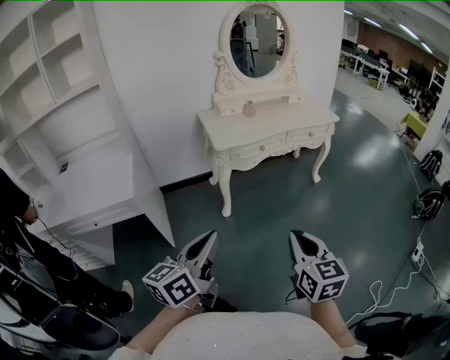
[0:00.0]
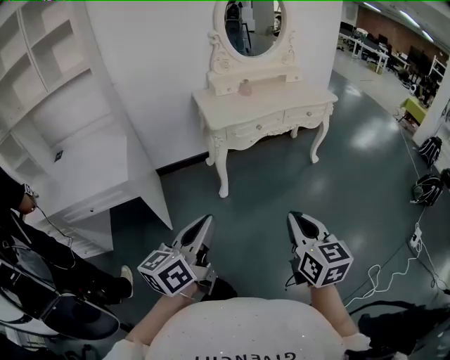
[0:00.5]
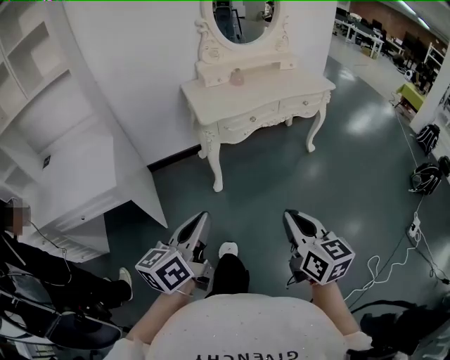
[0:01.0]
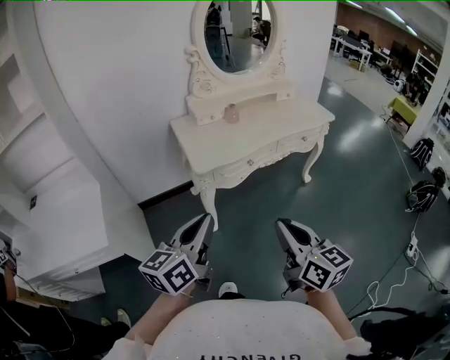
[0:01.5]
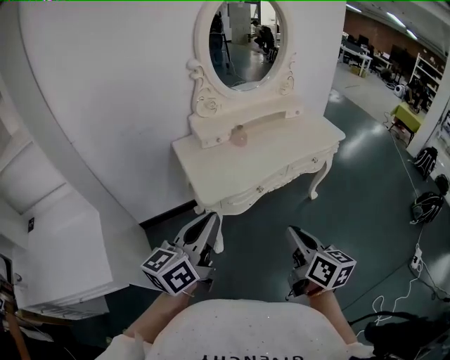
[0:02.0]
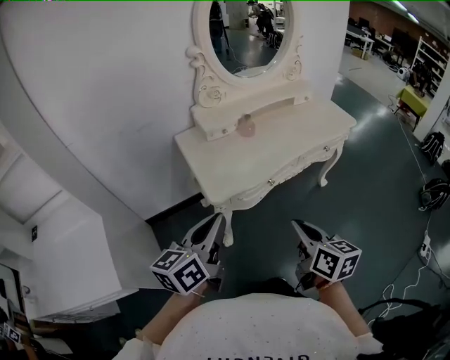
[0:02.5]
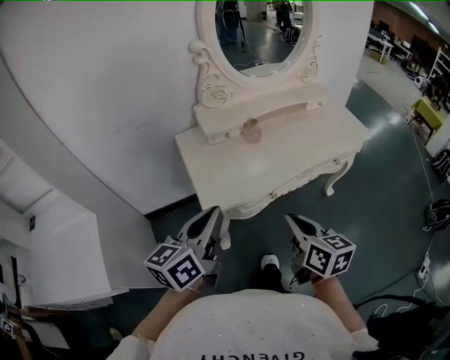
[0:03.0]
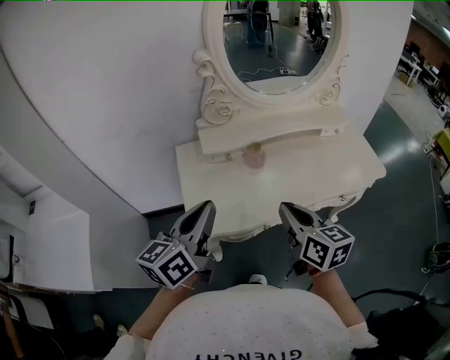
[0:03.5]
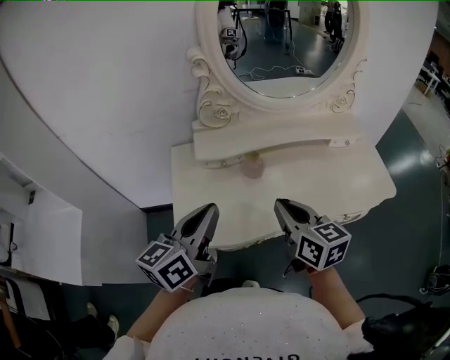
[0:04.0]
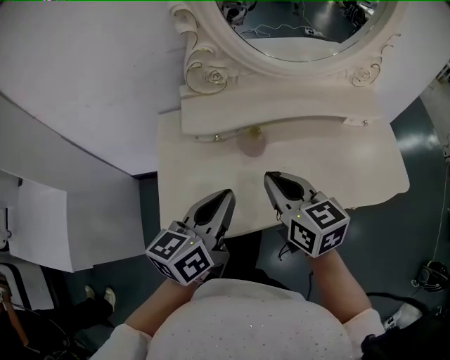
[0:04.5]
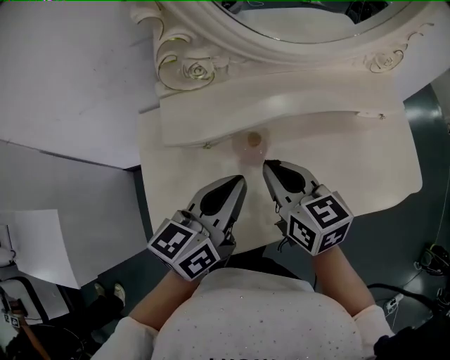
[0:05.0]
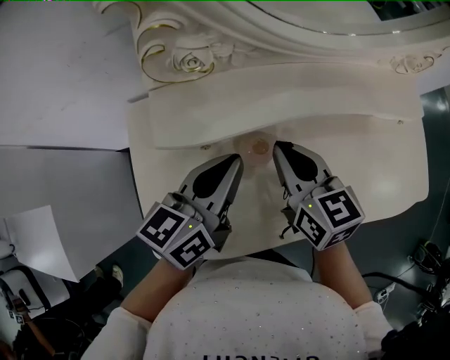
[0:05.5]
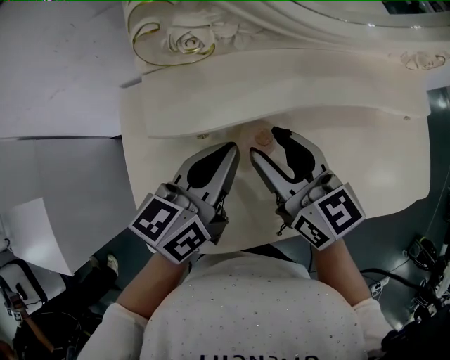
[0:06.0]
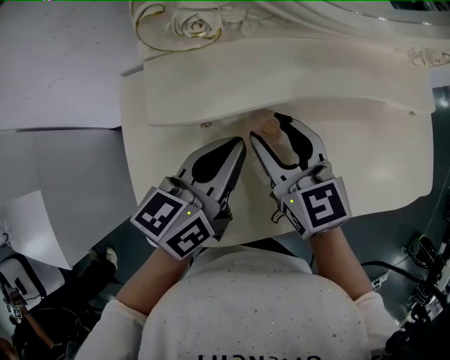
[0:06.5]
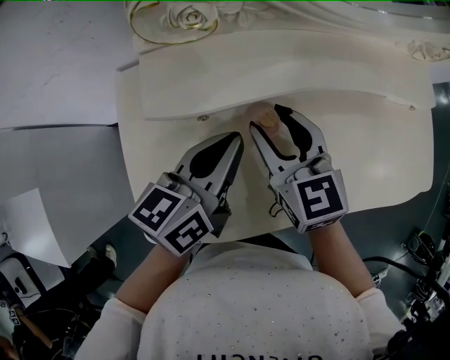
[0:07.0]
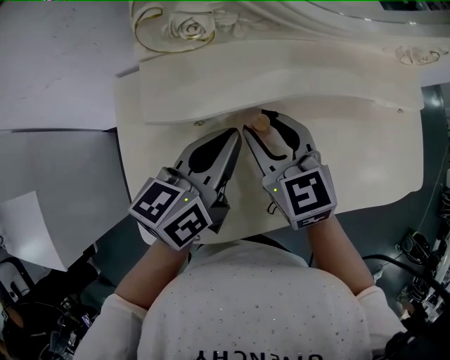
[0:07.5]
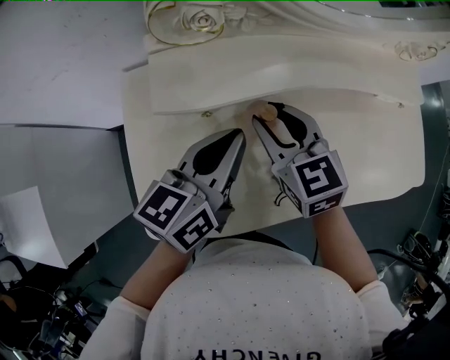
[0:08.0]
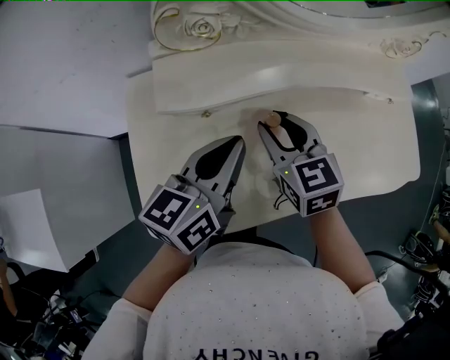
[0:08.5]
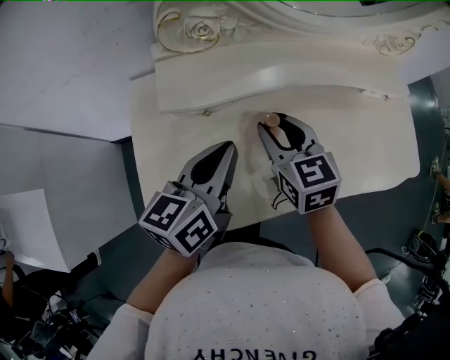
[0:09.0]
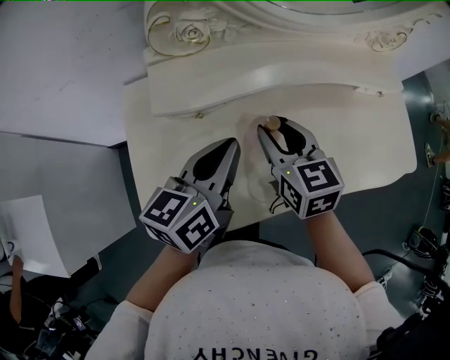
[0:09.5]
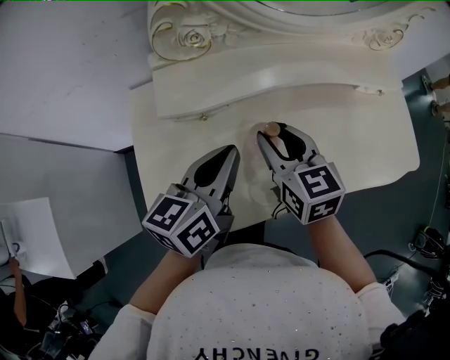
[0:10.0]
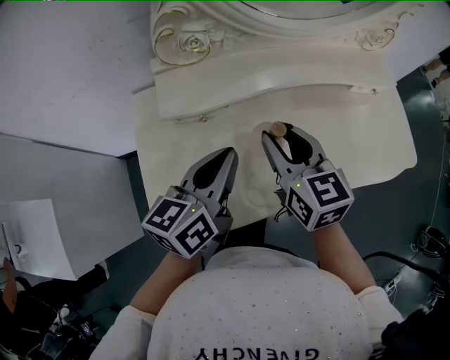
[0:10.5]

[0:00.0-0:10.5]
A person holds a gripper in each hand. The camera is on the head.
0:00.0 to 0:02.0: Both grippers travel together forward, some 40 cm. The right gripper changes its angle by roughly 30 degrees.
0:02.0 to 0:04.0: The two grippers go roughly 35 cm forward. The right gripper swivels about 30 degrees; the left gripper changes its angle by approximately 20 degrees.
0:04.0 to 0:06.5: Both grippers move forward and downward, some 25 cm. The right gripper opens up.
0:06.5 to 0:08.5: The grippers stay close to where they were, moving slightly.
0:08.5 to 0:10.5: The right gripper is displaced upward by roughly 5 cm.

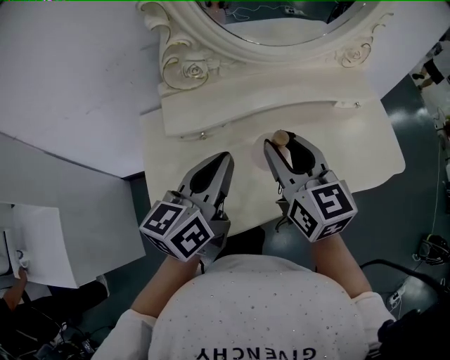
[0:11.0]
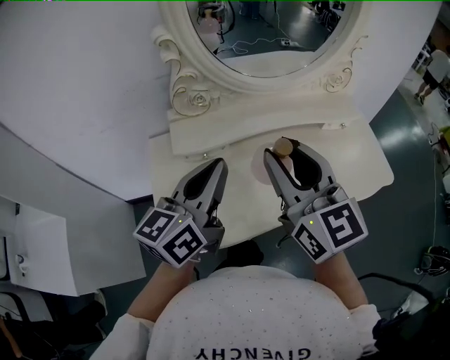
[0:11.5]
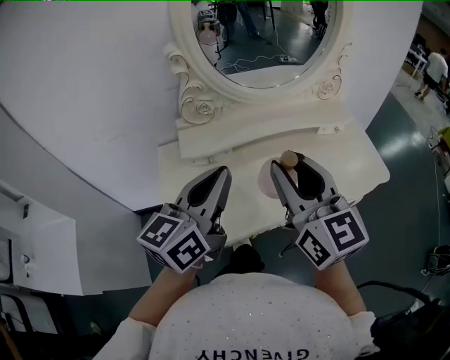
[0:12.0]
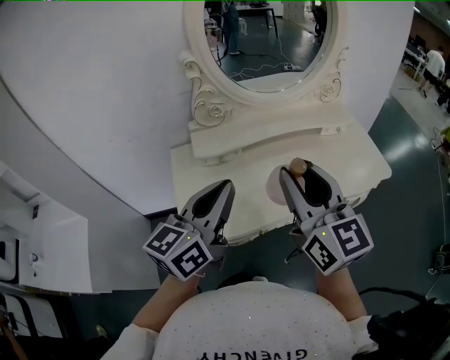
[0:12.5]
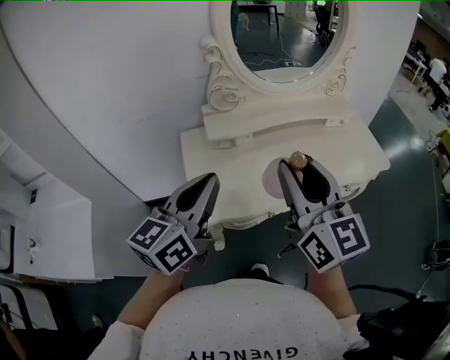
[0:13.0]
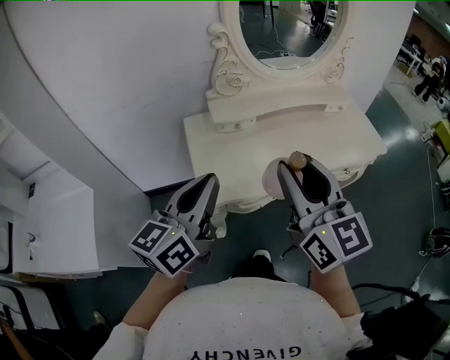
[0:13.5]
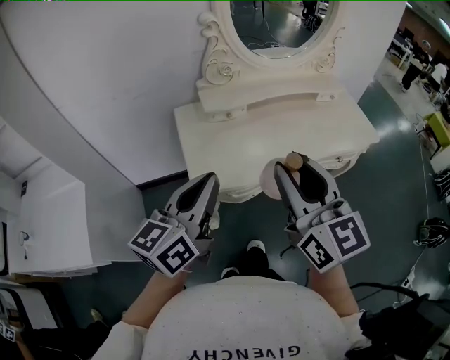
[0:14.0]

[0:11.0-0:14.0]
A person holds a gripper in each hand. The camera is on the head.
0:11.0 to 0:12.5: The two grippers go about 20 cm backward and upward.
0:12.5 to 0:14.0: The grippers both shift backward and to the left by some 15 cm.

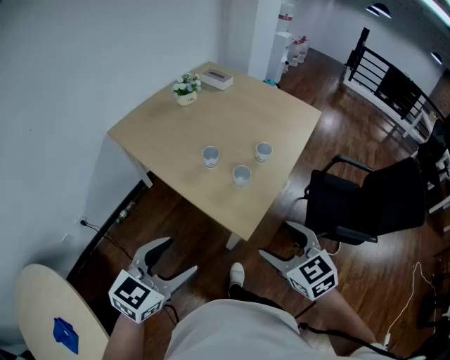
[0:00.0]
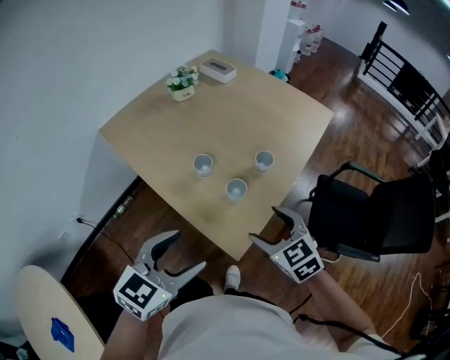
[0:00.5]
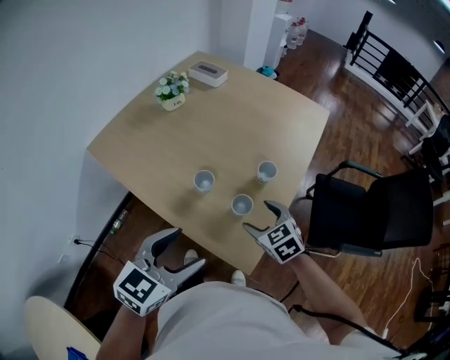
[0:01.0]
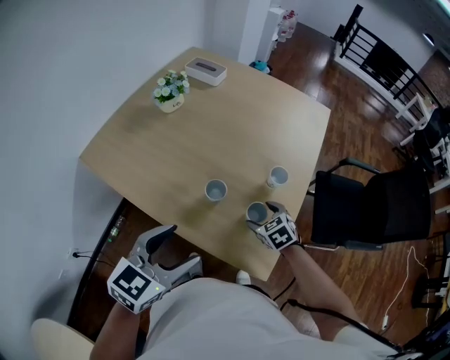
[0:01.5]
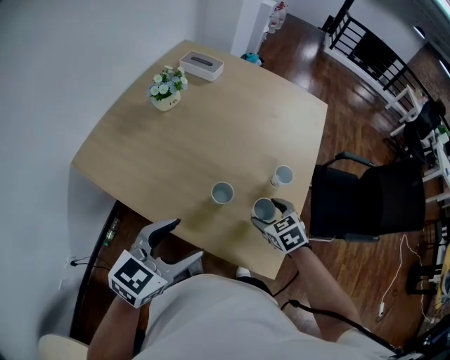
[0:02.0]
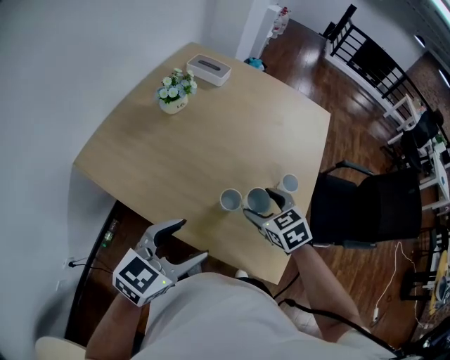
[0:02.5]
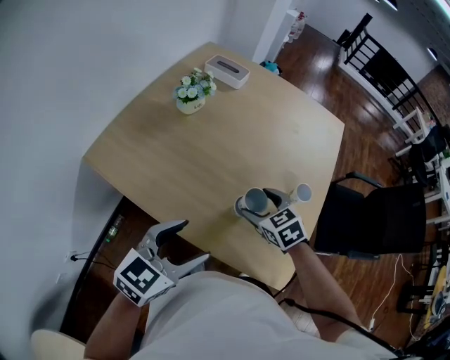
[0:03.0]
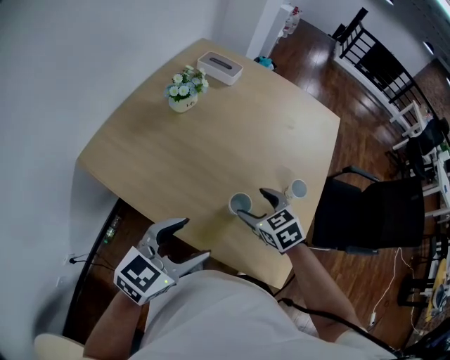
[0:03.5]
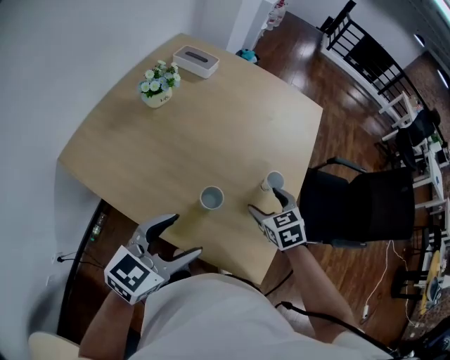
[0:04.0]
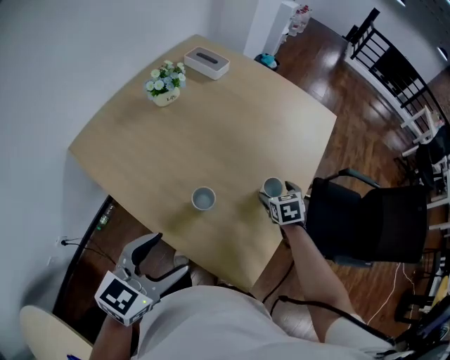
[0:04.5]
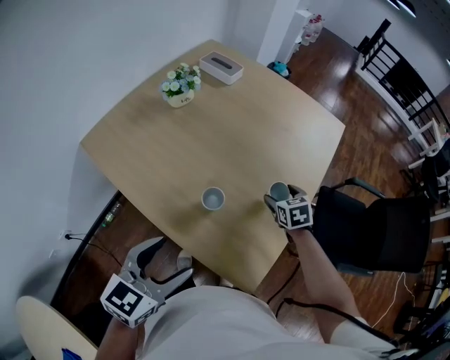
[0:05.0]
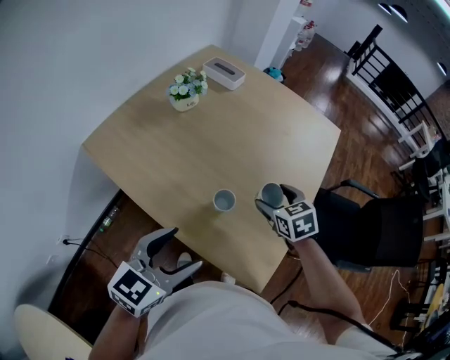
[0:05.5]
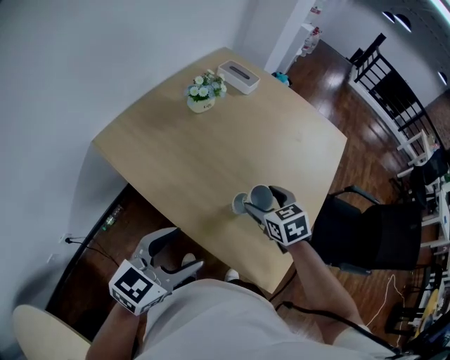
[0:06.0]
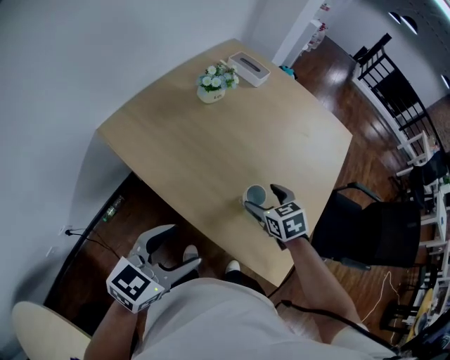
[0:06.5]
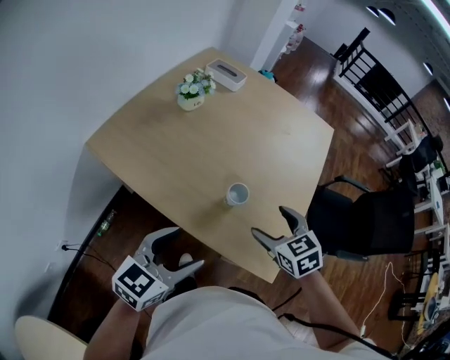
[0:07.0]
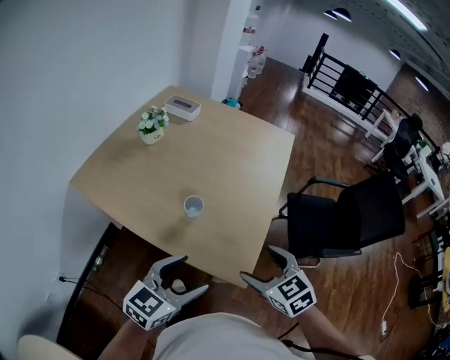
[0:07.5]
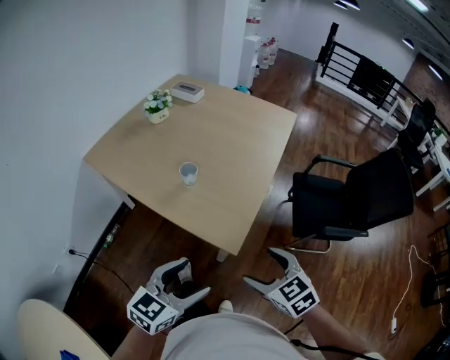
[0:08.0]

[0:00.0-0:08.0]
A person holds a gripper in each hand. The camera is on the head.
0:00.0 to 0:02.0: The left gripper moves forward and to the left, some 30 cm, while the right gripper heads forward and downward, covering roughly 35 cm, and swivels about 30 degrees.
0:02.0 to 0:04.0: The right gripper is displaced forward by approximately 5 cm, and goes to the left and returns, some 15 cm each way.
0:04.0 to 0:06.0: The left gripper shifts some 10 cm backward and to the left. Meanwhile the right gripper travels to the left by approximately 10 cm.
0:06.0 to 0:08.0: The right gripper travels backward and to the right by about 40 cm. Meanwhile the left gripper travels to the right and backward by about 35 cm.

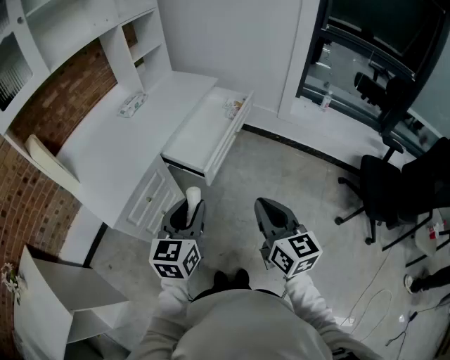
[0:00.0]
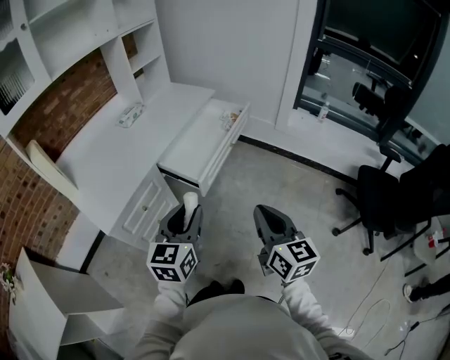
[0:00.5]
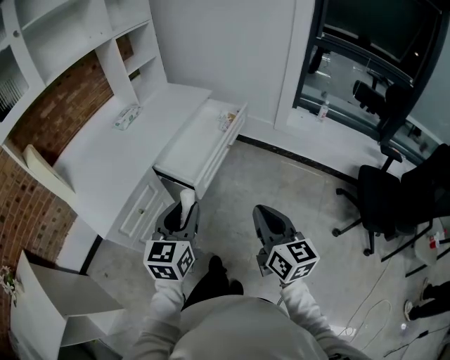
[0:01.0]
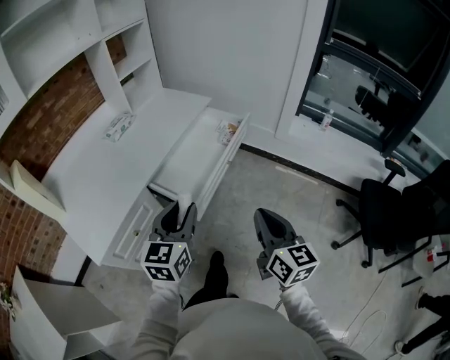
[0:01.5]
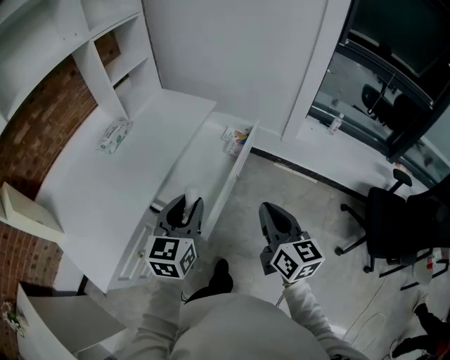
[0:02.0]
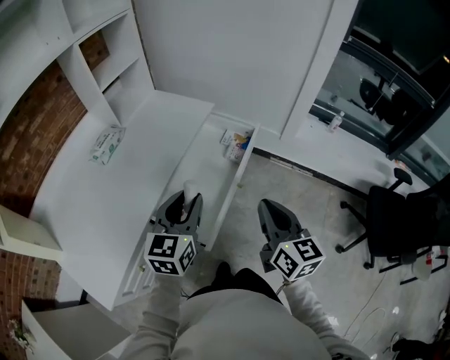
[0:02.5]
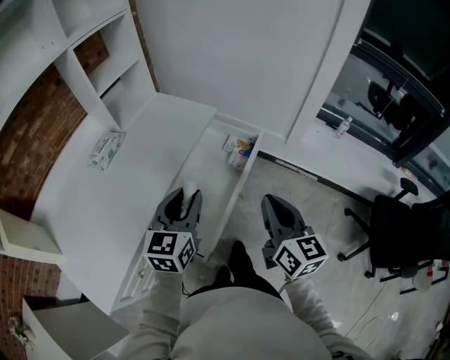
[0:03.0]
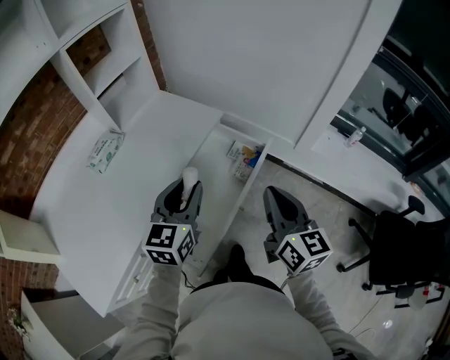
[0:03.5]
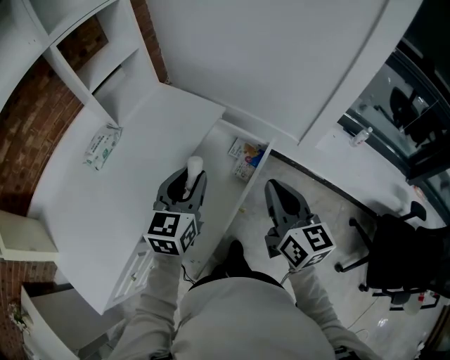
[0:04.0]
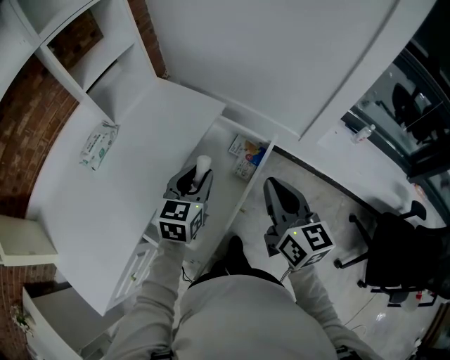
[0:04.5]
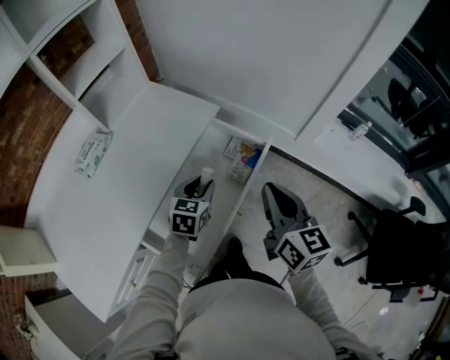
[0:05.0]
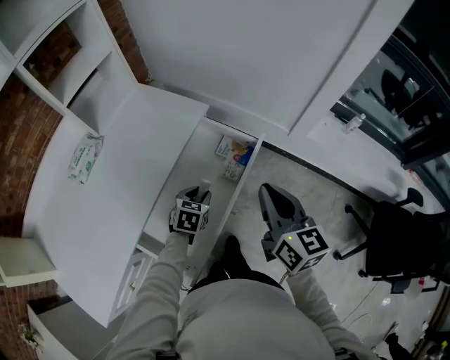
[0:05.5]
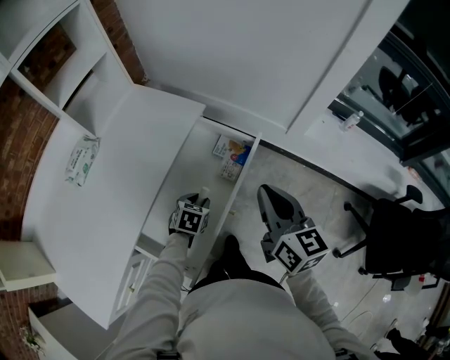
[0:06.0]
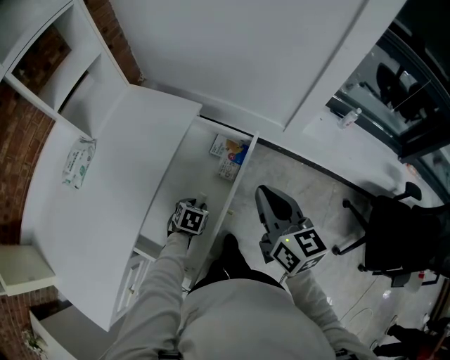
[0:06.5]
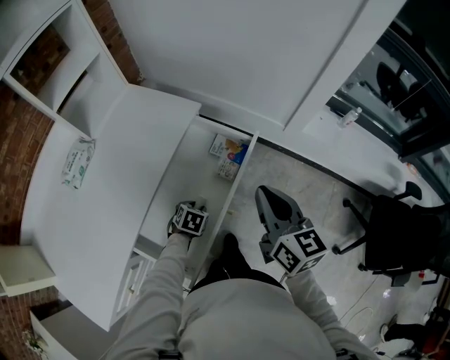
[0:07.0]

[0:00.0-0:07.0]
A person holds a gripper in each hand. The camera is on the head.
0:00.0 to 0:02.0: Both grippers move forward, about 25 cm.
0:02.0 to 0:03.5: The two grippers go roughly 20 cm forward.
0:03.5 to 0:05.0: The right gripper moves forward, some 5 cm, while the left gripper travels downward and forward by roughly 20 cm, and changes its angle by approximately 20 degrees.
0:05.0 to 0:07.0: The left gripper travels downward by roughly 20 cm, and points its fingers roughly 30 degrees further downward.
